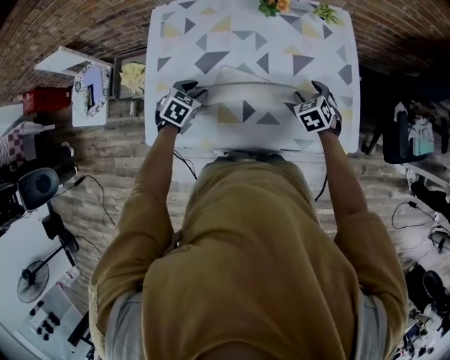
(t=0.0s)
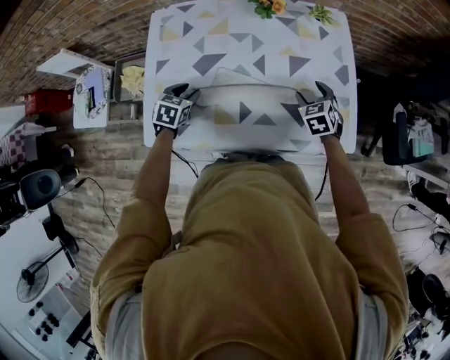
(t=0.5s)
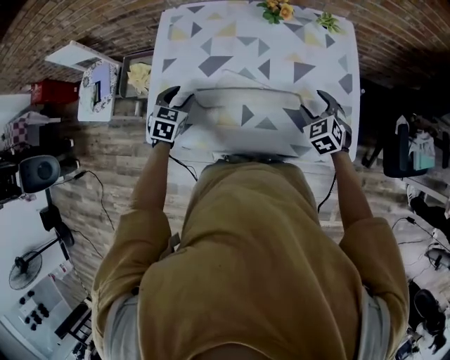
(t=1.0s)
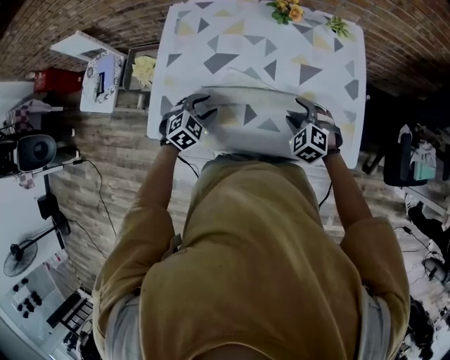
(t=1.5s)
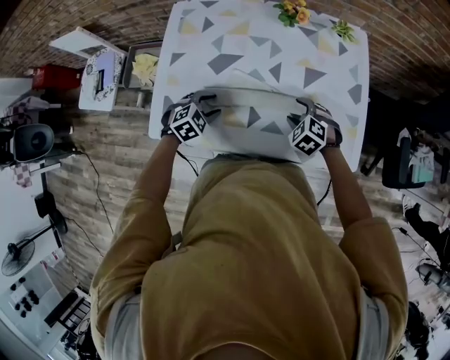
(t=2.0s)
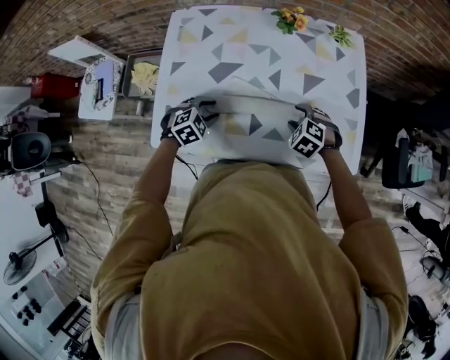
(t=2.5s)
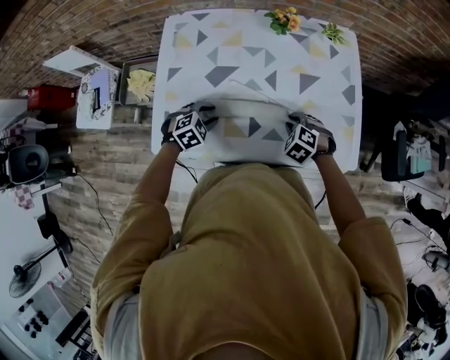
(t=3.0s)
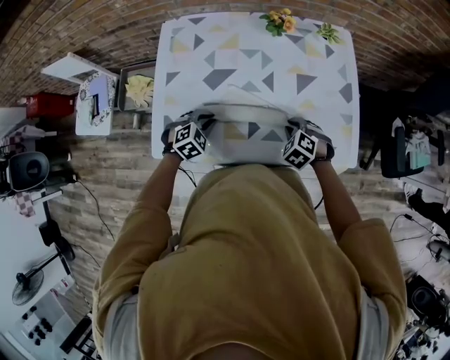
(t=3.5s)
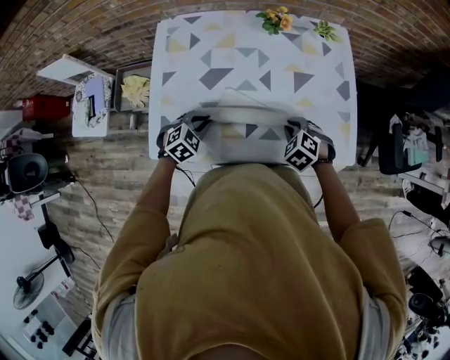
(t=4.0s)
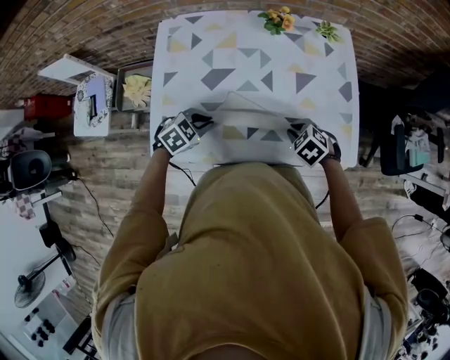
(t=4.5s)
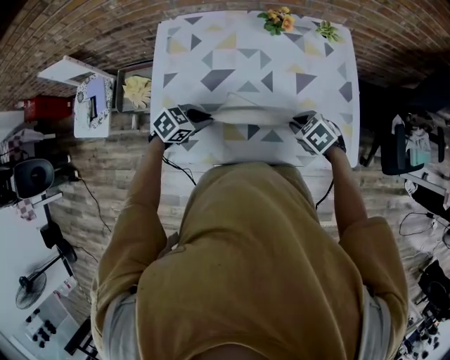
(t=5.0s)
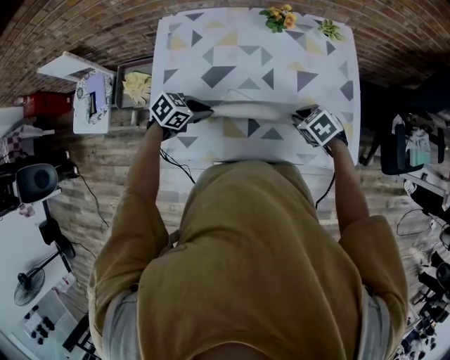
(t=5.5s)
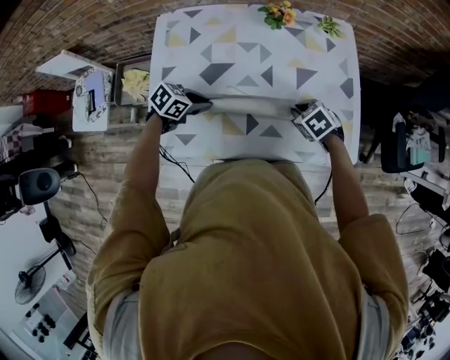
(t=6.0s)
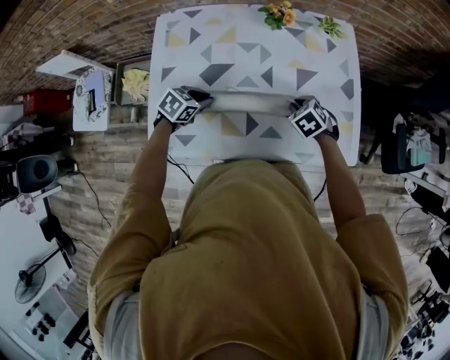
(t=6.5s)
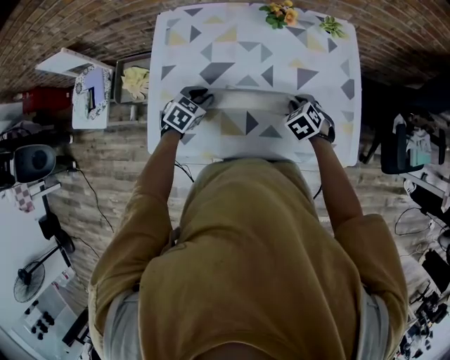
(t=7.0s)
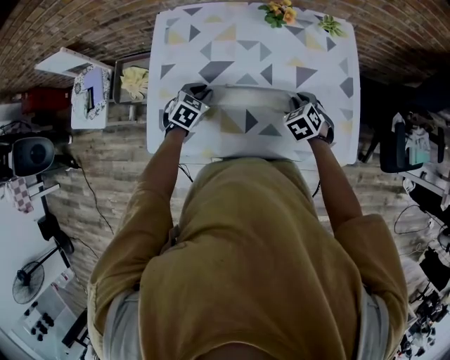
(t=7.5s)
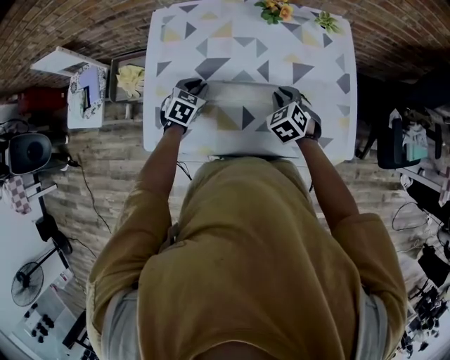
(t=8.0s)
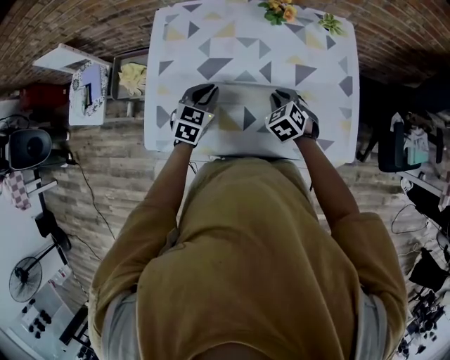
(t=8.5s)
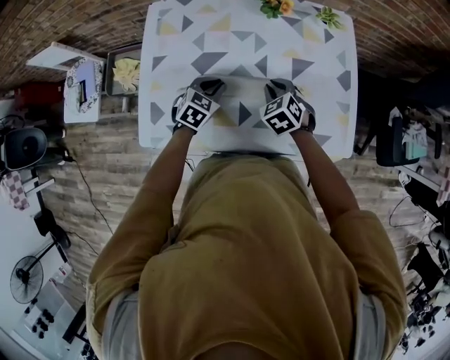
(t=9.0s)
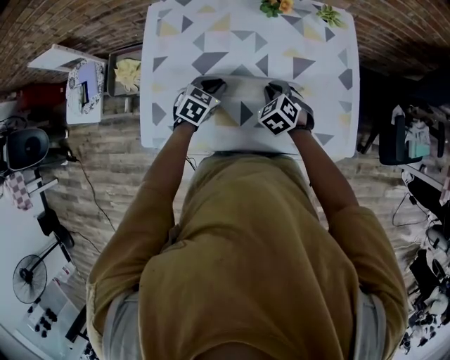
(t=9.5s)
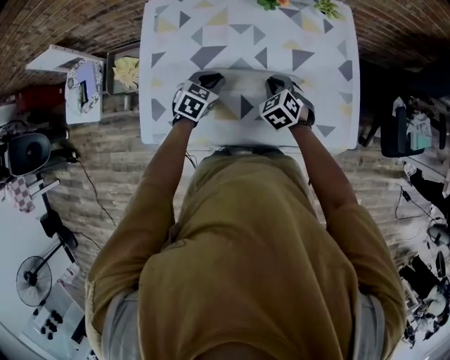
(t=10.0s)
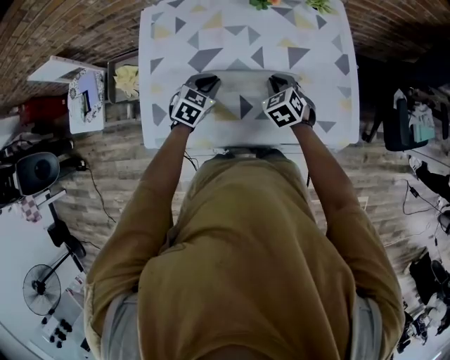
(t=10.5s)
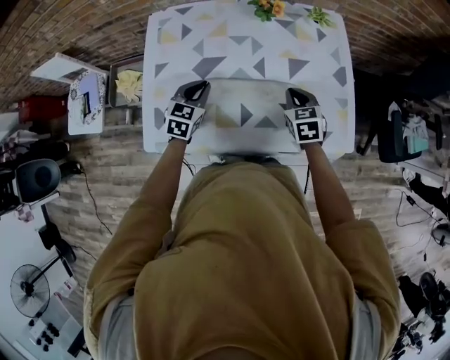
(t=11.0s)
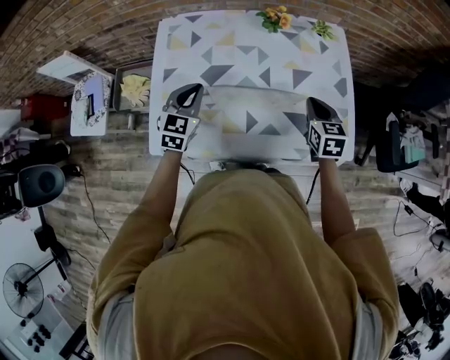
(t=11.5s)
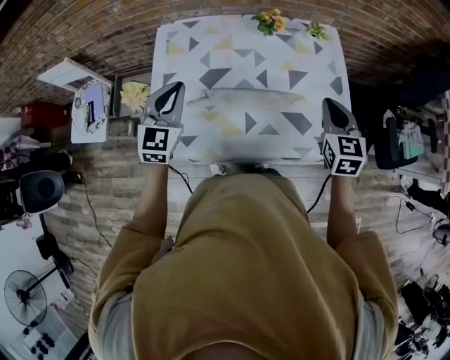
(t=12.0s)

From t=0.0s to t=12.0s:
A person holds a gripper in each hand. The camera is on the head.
From t=0.0s to t=2.0s: The left gripper heads backward, covering about 5 cm, and swivels some 20 degrees, while the right gripper heads to the left and backward, covering about 10 cm, and swivels approximately 30 degrees.
From t=2.0s to t=4.0s: The right gripper closes up.
From t=4.0s to t=6.0s: The left gripper rotates about 40 degrees. Meanwhile the right gripper moves roughly 5 cm, and rotates roughly 20 degrees.
From t=6.0s to t=8.0s: The right gripper changes place by roughly 5 cm, and turns by approximately 20 degrees; the left gripper ends up some 5 cm from where it was, and rotates some 40 degrees.
From t=8.0s to t=10.0s: The left gripper travels to the right by about 5 cm.
From t=10.0s to t=12.0s: The right gripper goes approximately 25 cm upward and to the right, and swivels some 40 degrees; the left gripper travels upward and to the left by about 25 cm, and angles its fingers upward, by about 30 degrees.

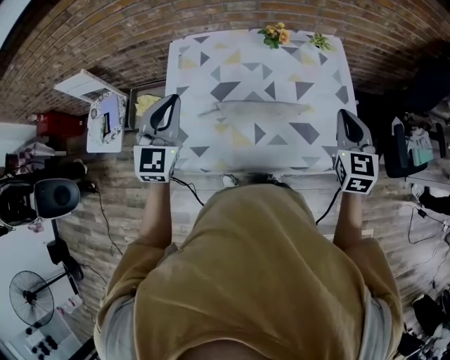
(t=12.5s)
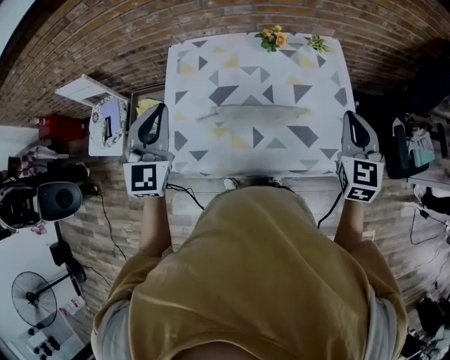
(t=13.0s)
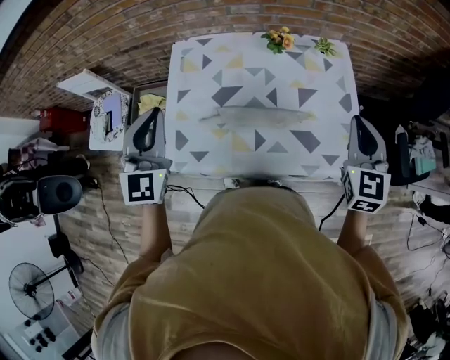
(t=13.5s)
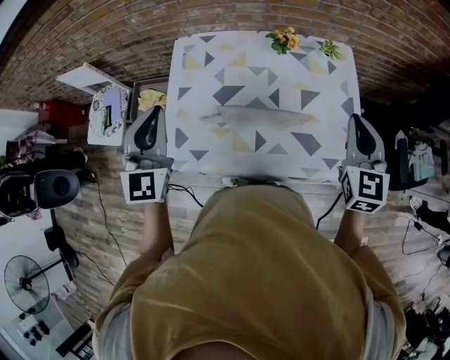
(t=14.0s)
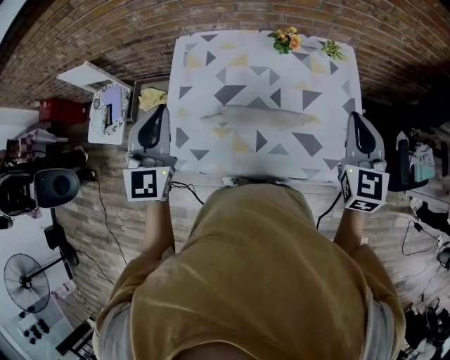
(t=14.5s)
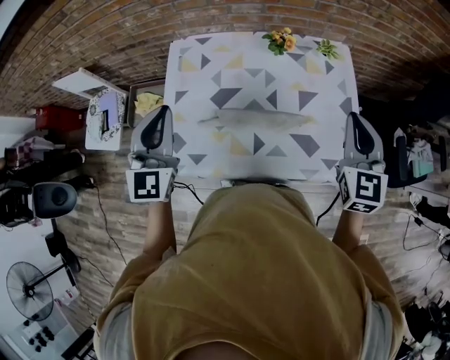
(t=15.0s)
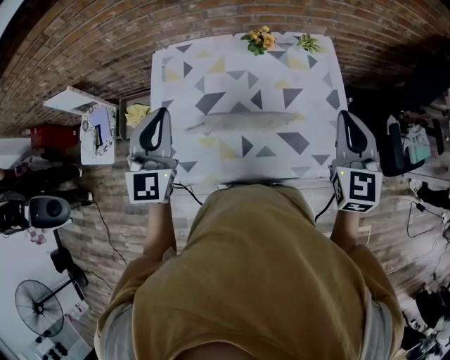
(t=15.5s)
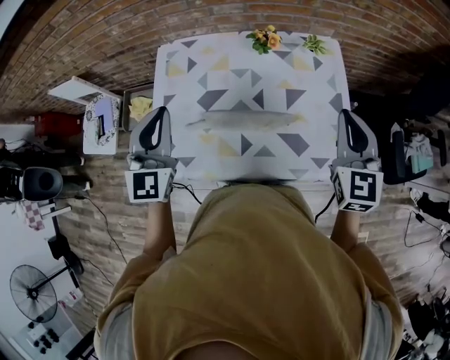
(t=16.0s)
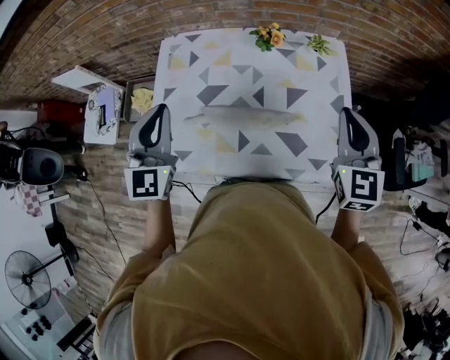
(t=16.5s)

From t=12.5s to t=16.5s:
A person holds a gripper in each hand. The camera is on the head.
From t=12.5s to t=14.5s: The right gripper is displaced upward by roughly 5 cm.
From t=14.5s to t=16.5s: The left gripper goes about 5 cm to the right.

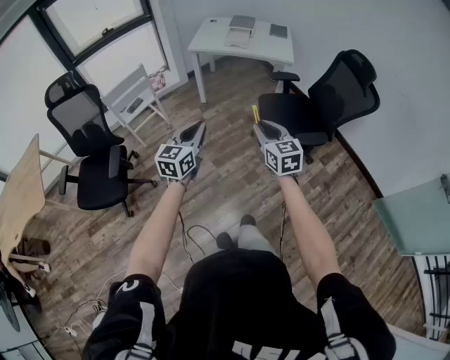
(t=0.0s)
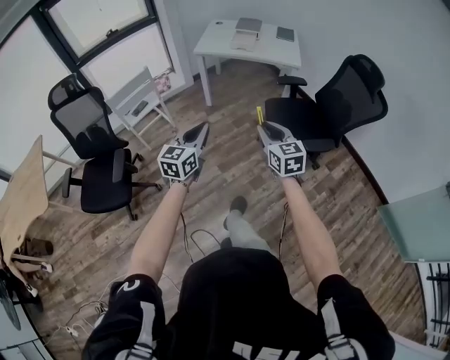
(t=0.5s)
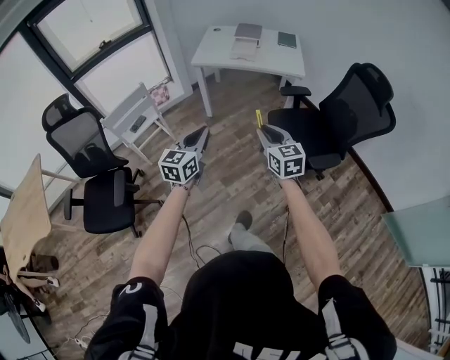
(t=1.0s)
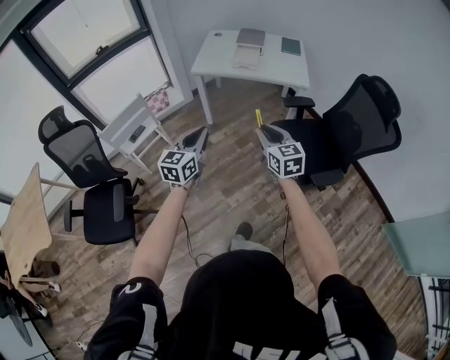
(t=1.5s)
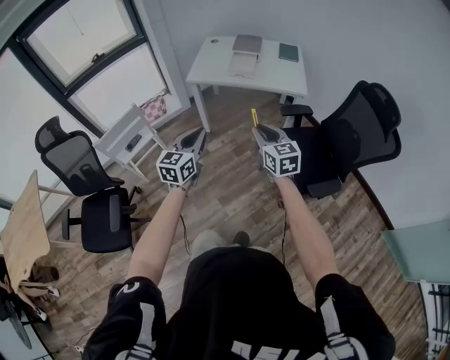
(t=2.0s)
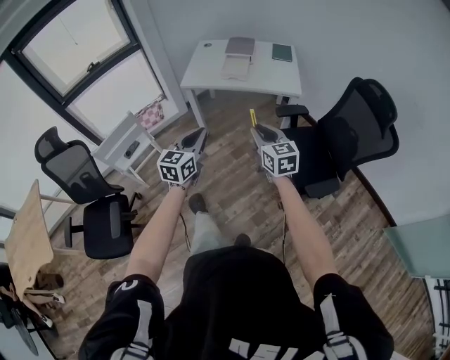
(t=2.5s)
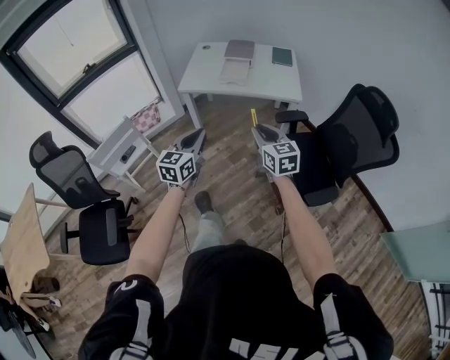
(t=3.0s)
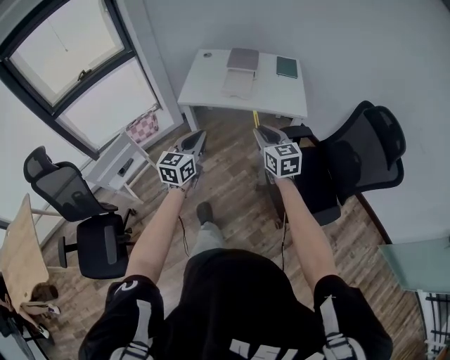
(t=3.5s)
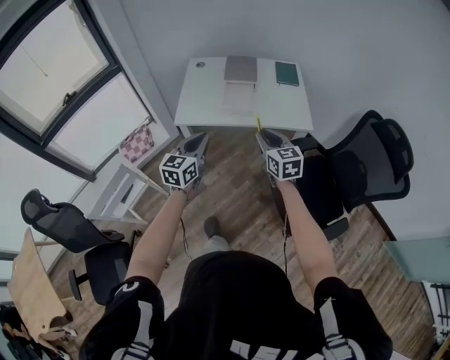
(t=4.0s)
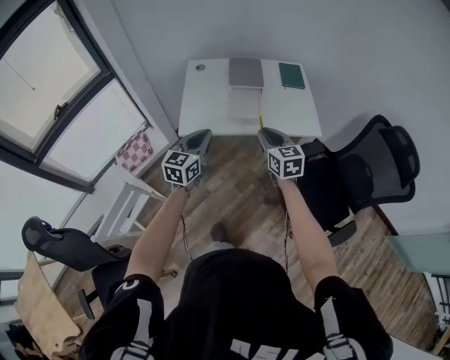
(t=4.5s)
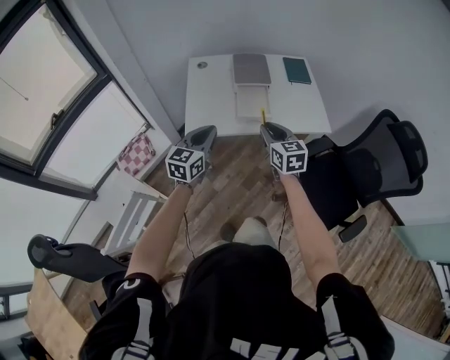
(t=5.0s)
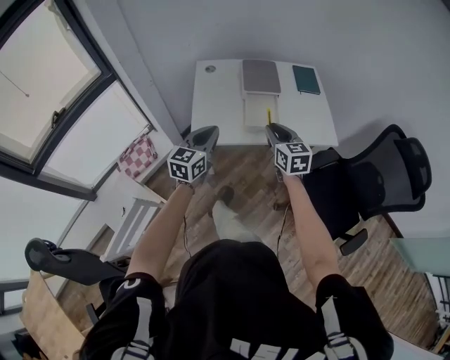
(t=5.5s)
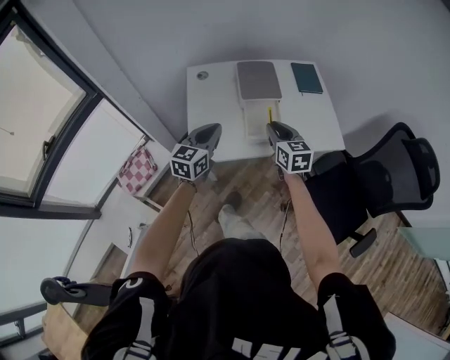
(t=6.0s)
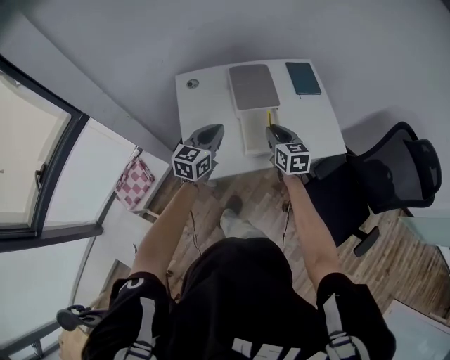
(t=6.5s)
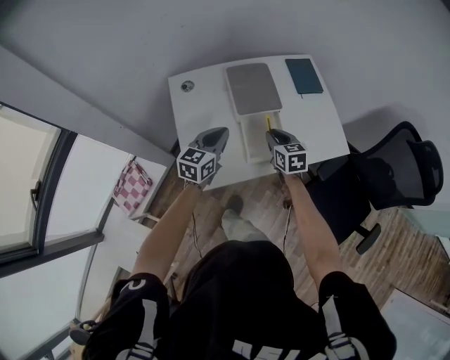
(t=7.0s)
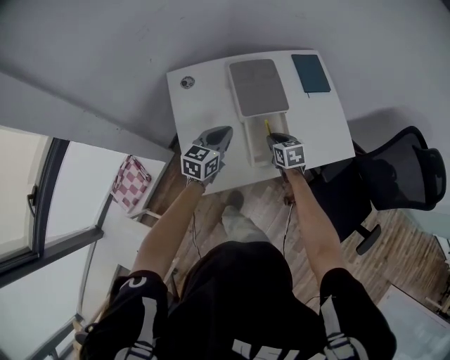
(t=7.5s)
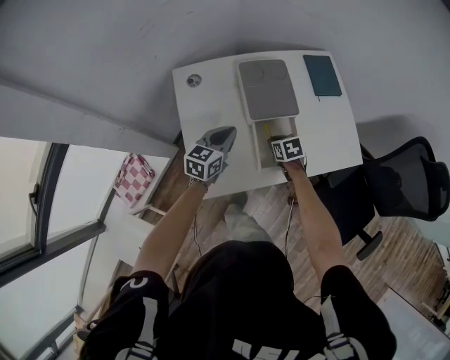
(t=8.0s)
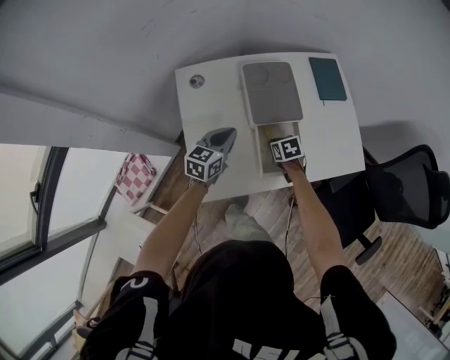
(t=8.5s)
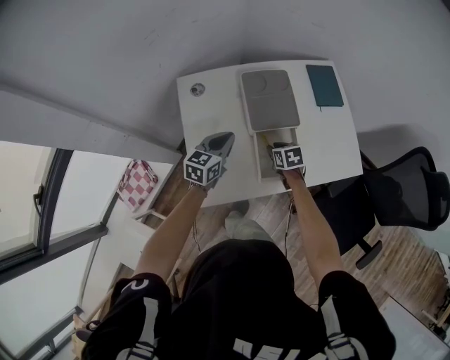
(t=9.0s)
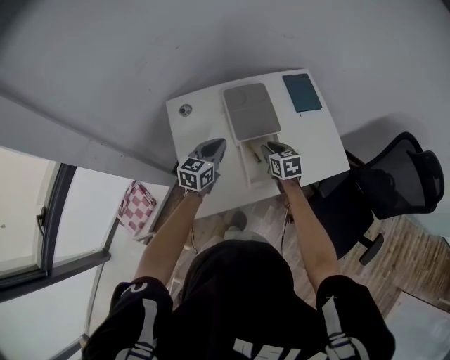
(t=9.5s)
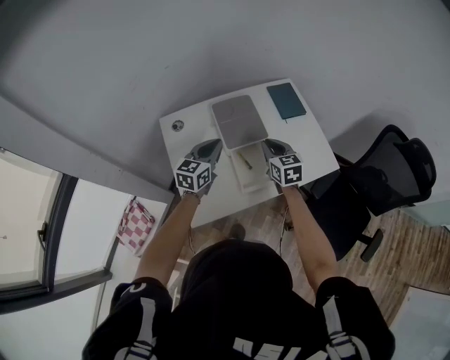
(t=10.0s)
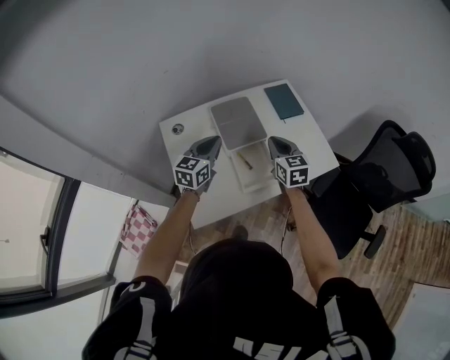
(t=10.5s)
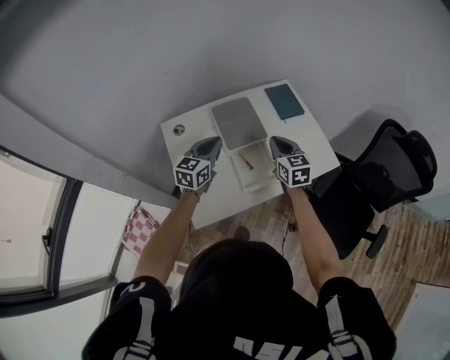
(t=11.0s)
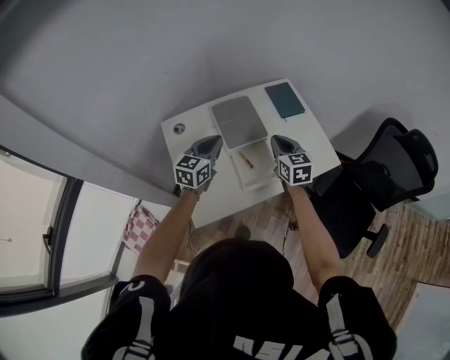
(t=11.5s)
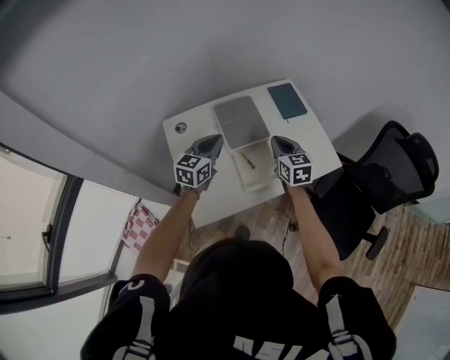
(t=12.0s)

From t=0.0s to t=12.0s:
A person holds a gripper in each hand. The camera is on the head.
From t=0.0s to t=2.0s: Both grippers travel together forward, approximately 30 cm.
From t=2.0s to t=4.0s: The two grippers go roughly 30 cm forward.
From t=4.0s to t=6.0s: The two grippers go about 30 cm forward and to the left.
From t=6.0s to t=8.0s: The right gripper heads downward and forward, covering about 30 cm, and points its fingers roughly 40 degrees further downward. Meanwhile the left gripper heads forward and downward, covering roughly 25 cm.
From t=8.0s to t=10.0s: The right gripper is displaced upward by about 20 cm, and points its fingers about 30 degrees further upward; the left gripper moves upward, some 10 cm.
From t=10.0s to t=12.0s: The grippers stay close to where they were, moving slightly.
